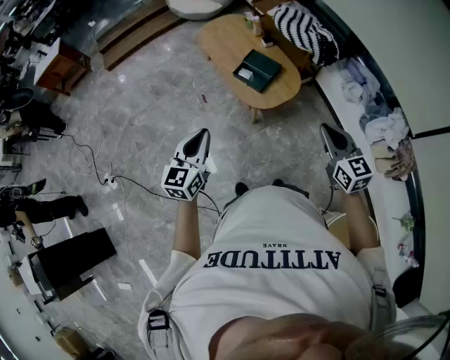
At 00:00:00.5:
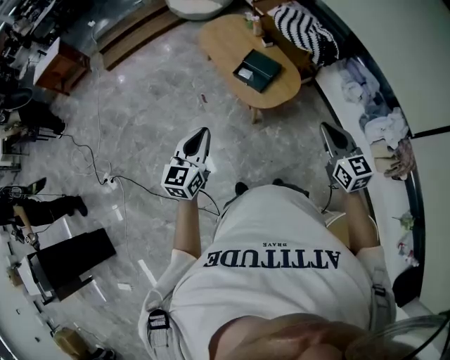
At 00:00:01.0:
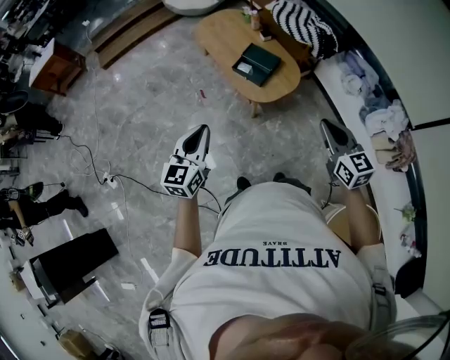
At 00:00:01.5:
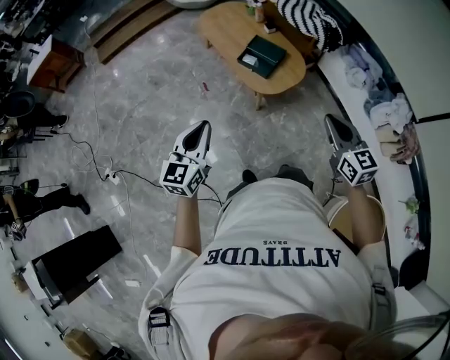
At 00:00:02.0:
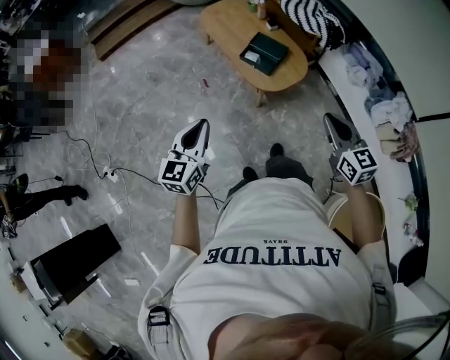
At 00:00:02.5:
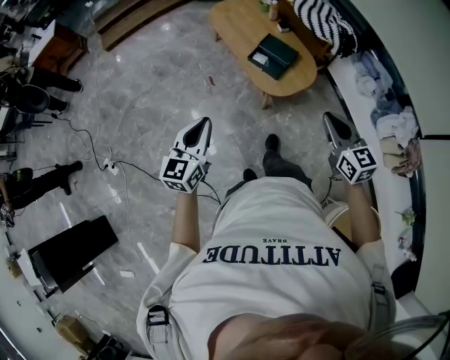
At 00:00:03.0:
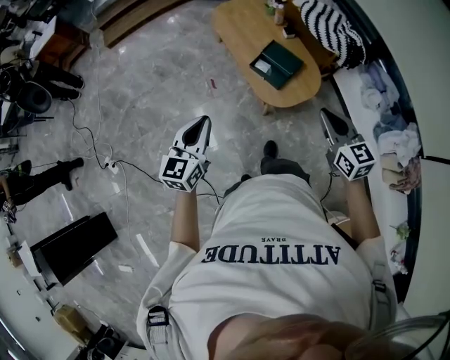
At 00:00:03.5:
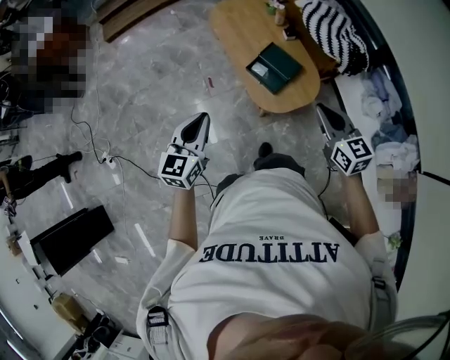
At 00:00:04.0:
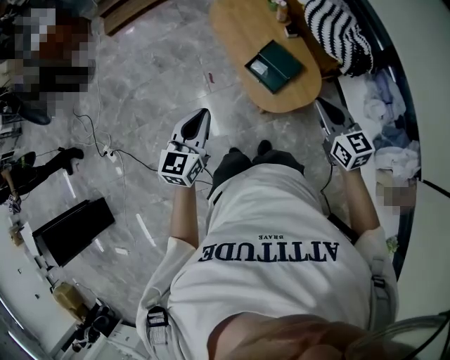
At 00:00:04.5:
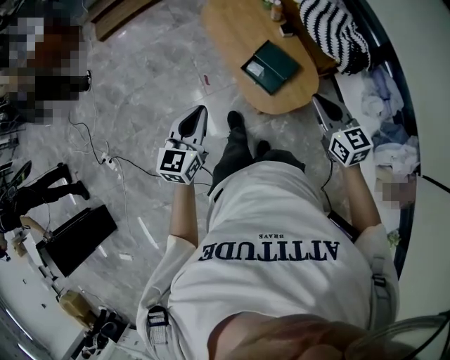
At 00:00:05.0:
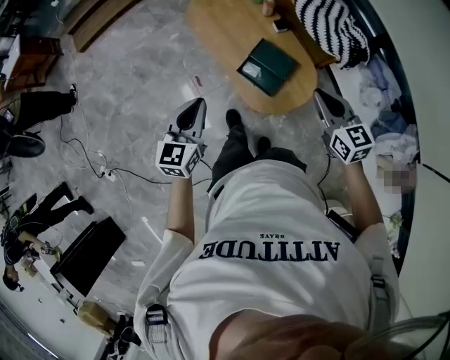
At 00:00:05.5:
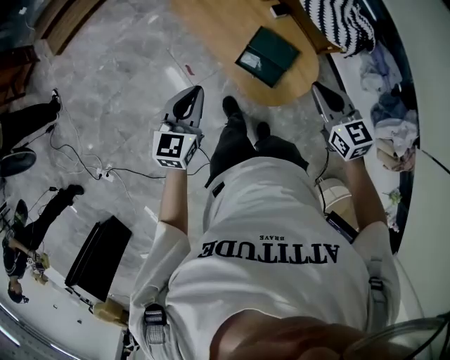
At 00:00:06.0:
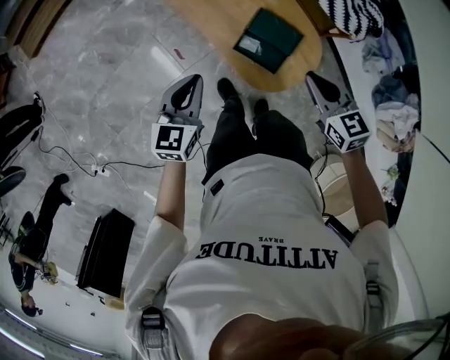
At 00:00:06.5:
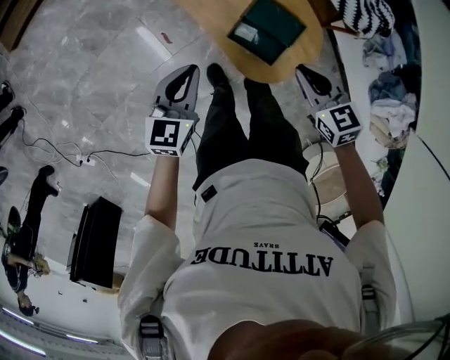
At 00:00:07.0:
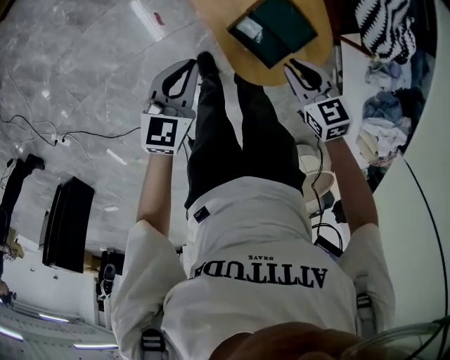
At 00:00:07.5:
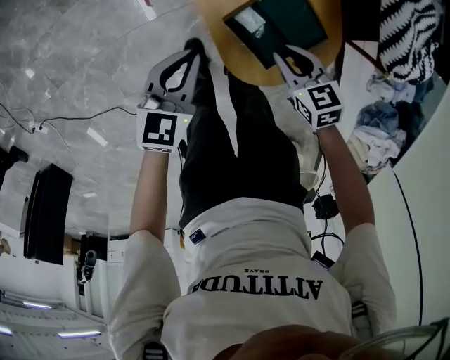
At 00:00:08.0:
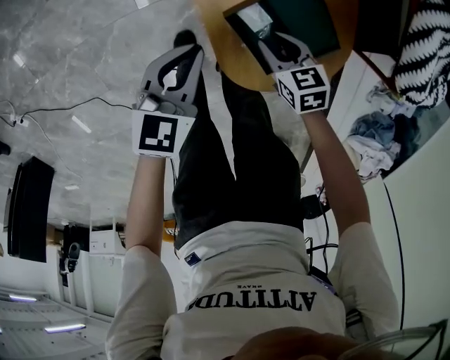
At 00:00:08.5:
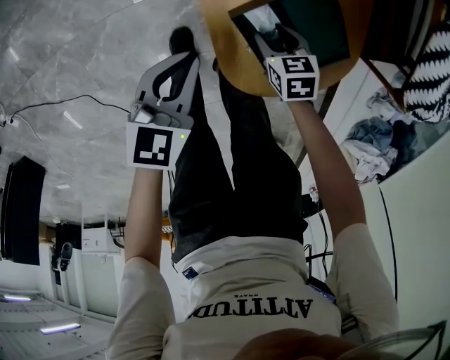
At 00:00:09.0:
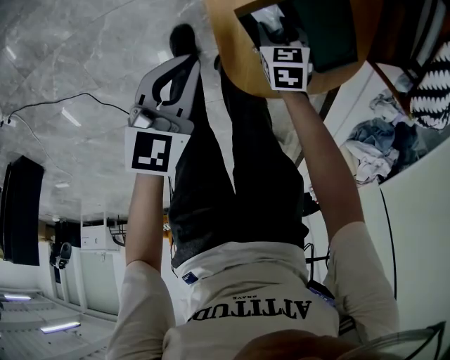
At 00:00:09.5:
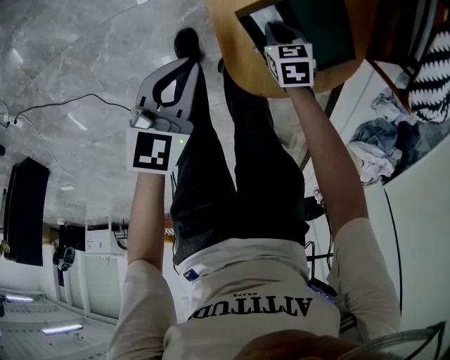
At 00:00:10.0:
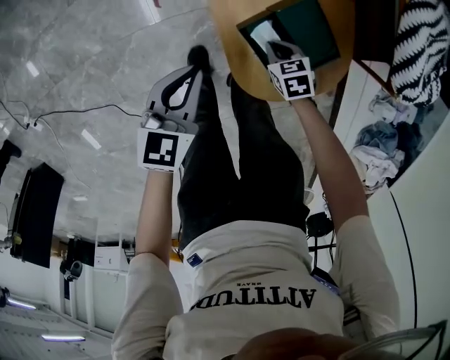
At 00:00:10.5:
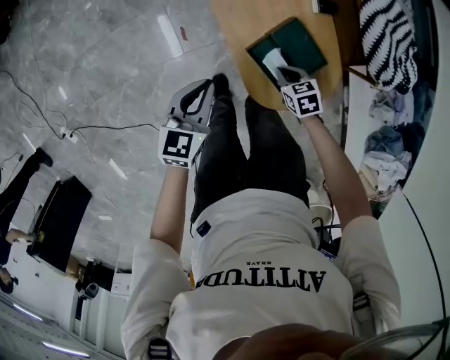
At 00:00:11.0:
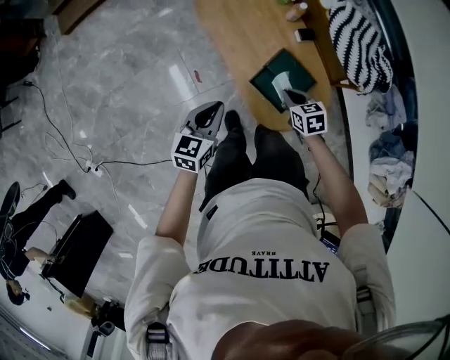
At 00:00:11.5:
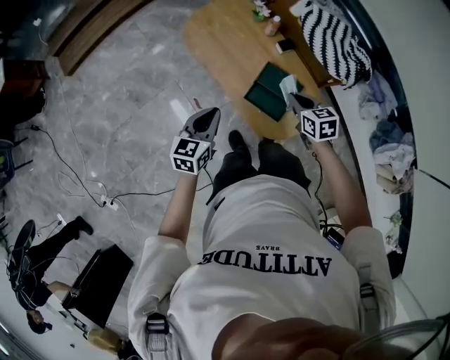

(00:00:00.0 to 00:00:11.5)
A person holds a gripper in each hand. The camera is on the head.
00:00:00.0 - 00:00:02.0: The grippers both shift to the left by about 10 cm.
00:00:02.0 - 00:00:04.0: The right gripper moves forward, some 35 cm. The left gripper moves forward and to the right, some 30 cm.
00:00:04.0 - 00:00:06.0: The left gripper shifts some 35 cm forward and downward, and rotates approximately 20 degrees. The right gripper travels forward, to the left and downward by about 30 cm, and turns by approximately 20 degrees.
00:00:06.0 - 00:00:07.5: Both grippers move downward, about 30 cm. The right gripper swivels approximately 30 degrees.
00:00:07.5 - 00:00:09.5: The right gripper is displaced downward by about 25 cm, and opens, then closes once more, while the left gripper moves downward, roughly 10 cm.
00:00:09.5 - 00:00:11.5: The grippers both shift upward by about 50 cm. The right gripper rotates approximately 40 degrees.

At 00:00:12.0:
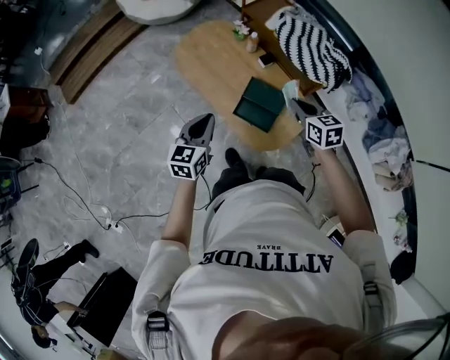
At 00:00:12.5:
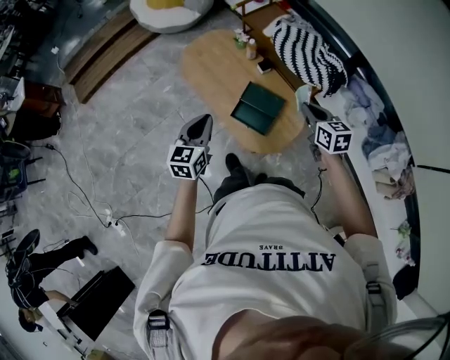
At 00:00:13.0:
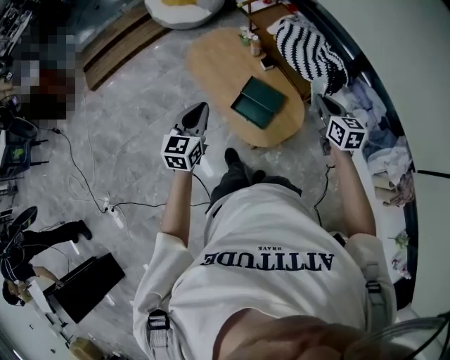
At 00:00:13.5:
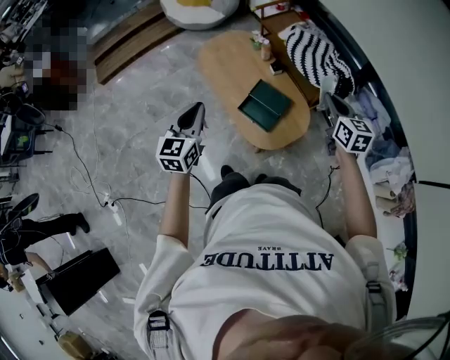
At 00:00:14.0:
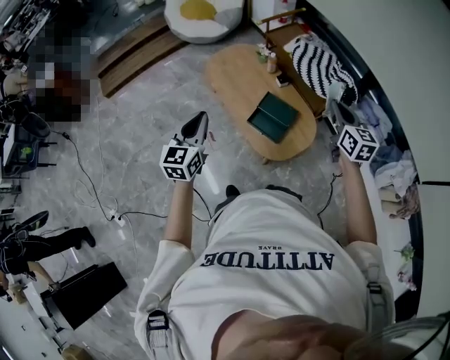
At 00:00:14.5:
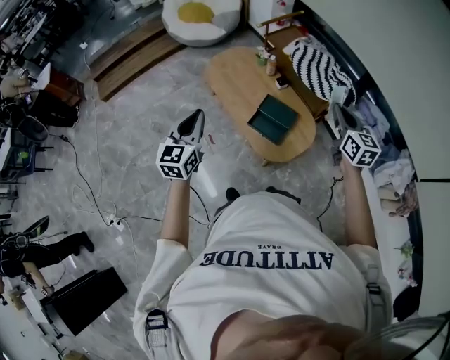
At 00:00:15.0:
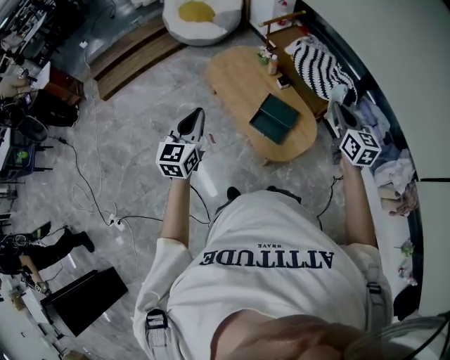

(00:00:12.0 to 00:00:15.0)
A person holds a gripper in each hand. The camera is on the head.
00:00:12.0 - 00:00:13.5: The left gripper travels backward and upward by roughly 20 cm. The right gripper moves to the right, upward and backward, approximately 20 cm.
00:00:13.5 - 00:00:15.0: The right gripper is displaced to the left and upward by approximately 10 cm. Meanwhile the left gripper is displaced to the left by about 10 cm.

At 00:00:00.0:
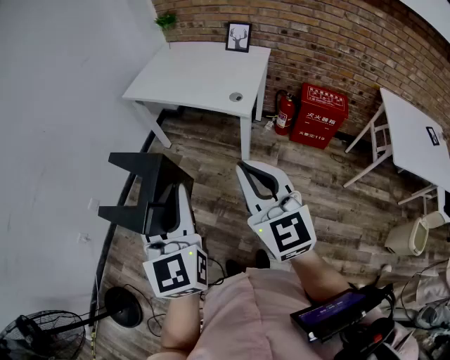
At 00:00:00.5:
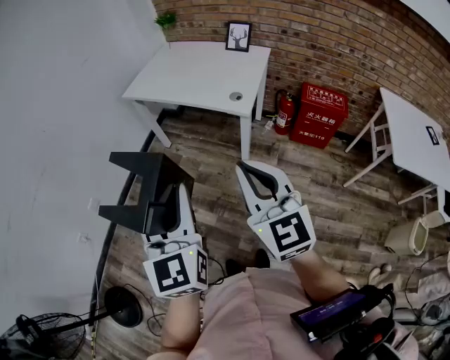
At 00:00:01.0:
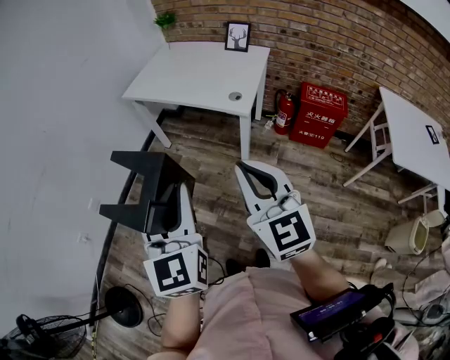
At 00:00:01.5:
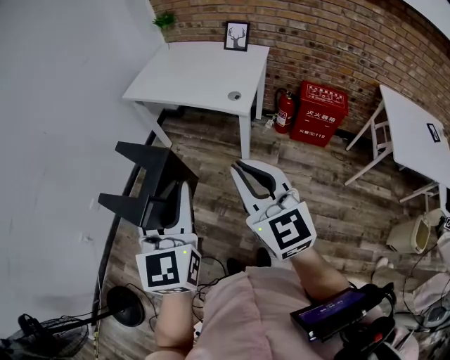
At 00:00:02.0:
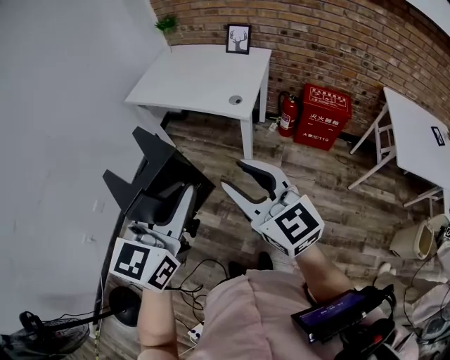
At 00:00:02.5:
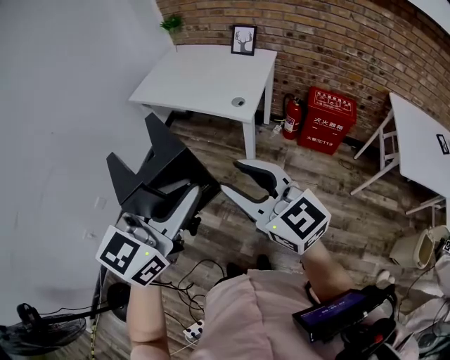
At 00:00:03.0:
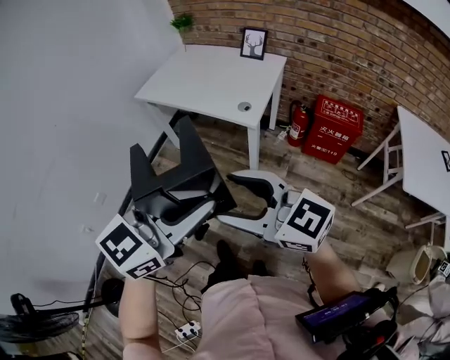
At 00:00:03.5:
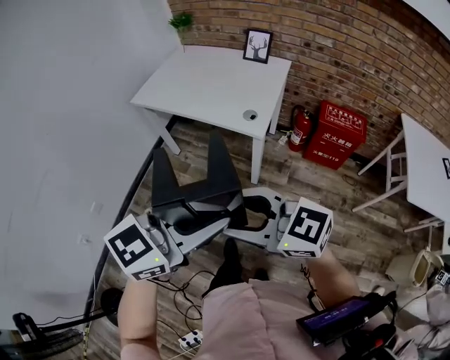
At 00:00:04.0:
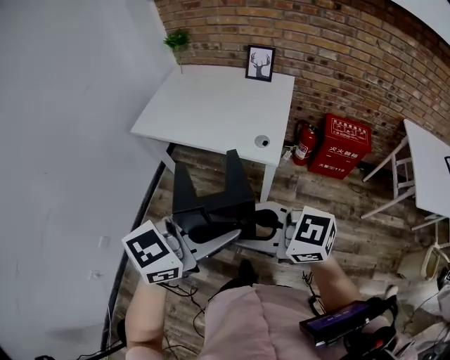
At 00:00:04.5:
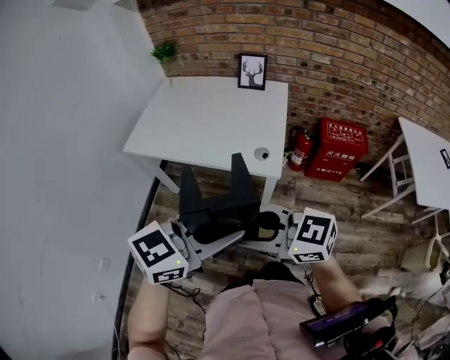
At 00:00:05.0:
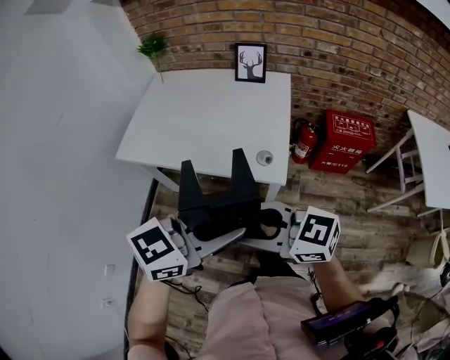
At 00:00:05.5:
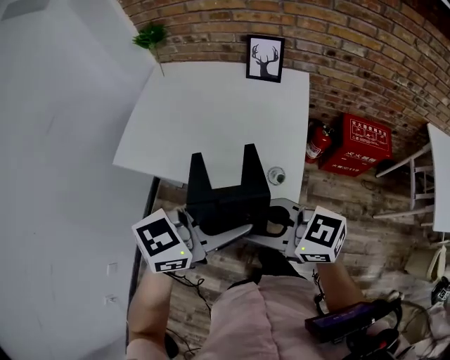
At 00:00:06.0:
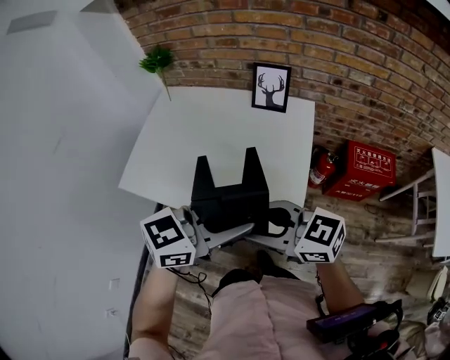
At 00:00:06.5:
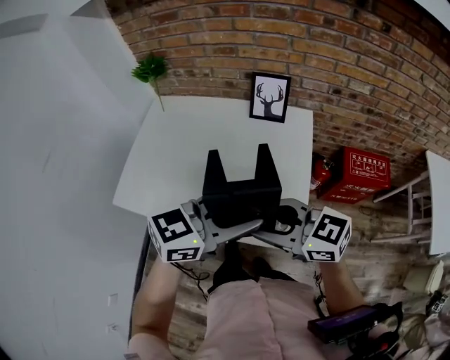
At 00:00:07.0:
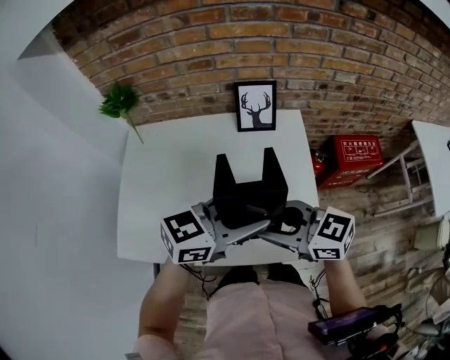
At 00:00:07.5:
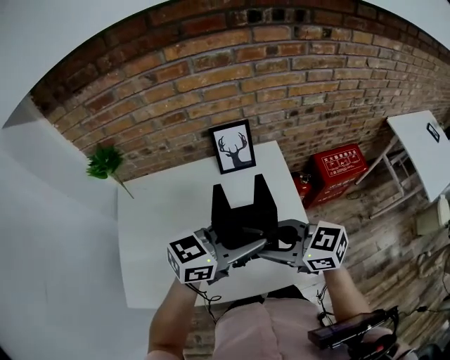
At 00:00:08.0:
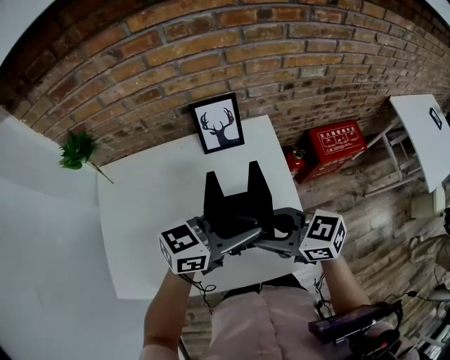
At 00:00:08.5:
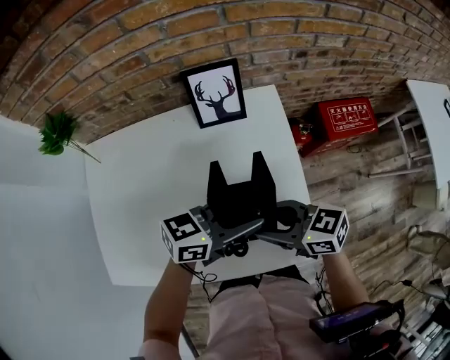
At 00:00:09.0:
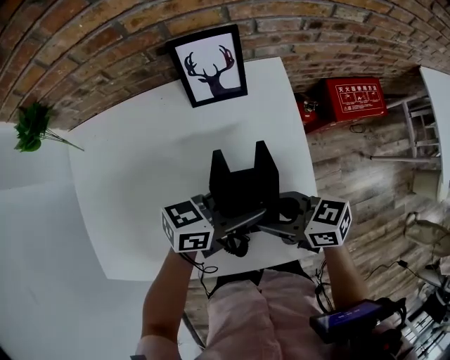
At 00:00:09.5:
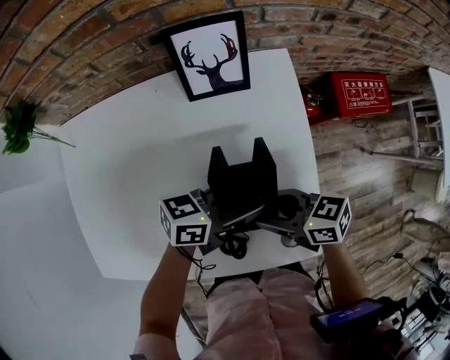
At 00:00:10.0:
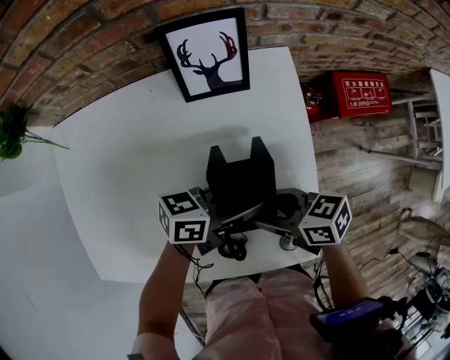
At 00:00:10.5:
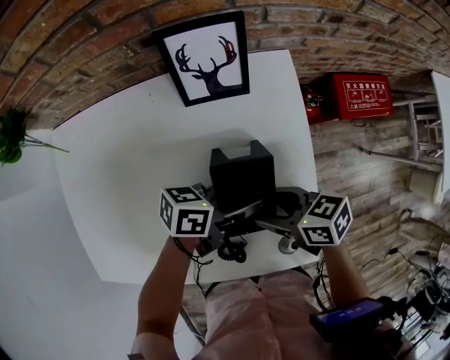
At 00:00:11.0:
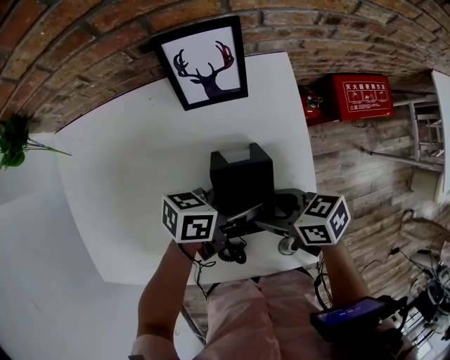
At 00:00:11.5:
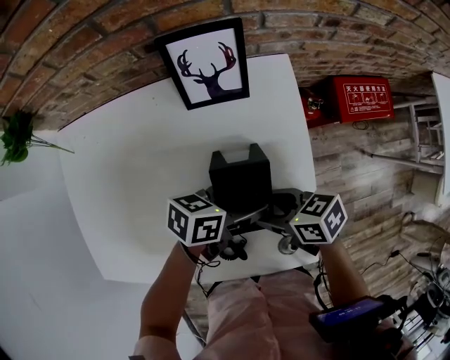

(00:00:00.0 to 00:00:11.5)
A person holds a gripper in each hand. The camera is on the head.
00:00:00.0 - 00:00:02.0: The right gripper opens. Meanwhile the left gripper moves to the right, roughly 5 cm, and turns by approximately 30 degrees.
00:00:02.0 - 00:00:04.0: The right gripper shifts by approximately 15 cm, changes its angle by some 30 degrees, and opens and closes again. The left gripper changes place by some 15 cm, and turns by approximately 40 degrees.
00:00:04.0 - 00:00:06.0: The right gripper changes place by about 35 cm. The left gripper changes place by roughly 35 cm.
00:00:06.0 - 00:00:07.5: The right gripper moves approximately 15 cm, and turns by roughly 30 degrees, while the left gripper shifts by some 15 cm, and turns by some 30 degrees.
00:00:07.5 - 00:00:09.5: The two grippers go approximately 20 cm downward. The right gripper rotates some 30 degrees. The left gripper turns by about 30 degrees.
00:00:09.5 - 00:00:11.5: The left gripper swivels some 20 degrees, and opens.
